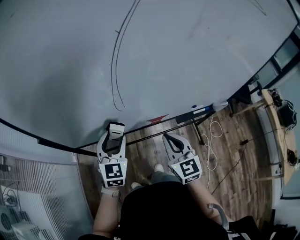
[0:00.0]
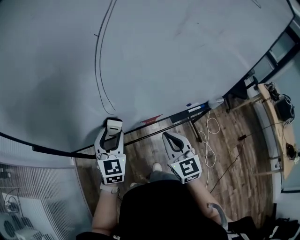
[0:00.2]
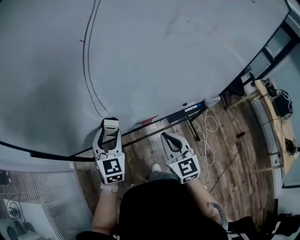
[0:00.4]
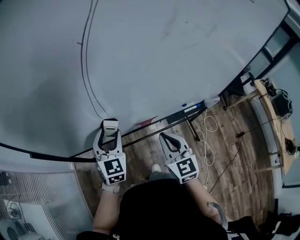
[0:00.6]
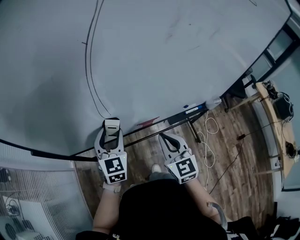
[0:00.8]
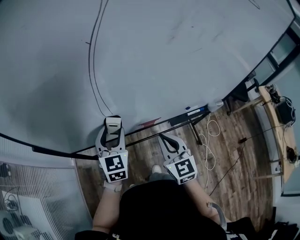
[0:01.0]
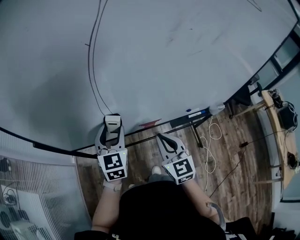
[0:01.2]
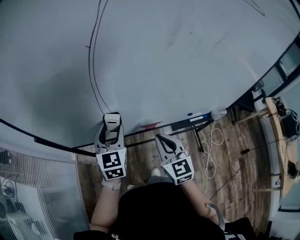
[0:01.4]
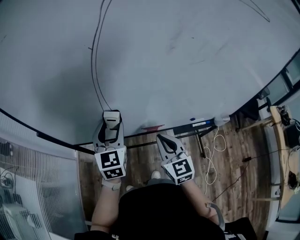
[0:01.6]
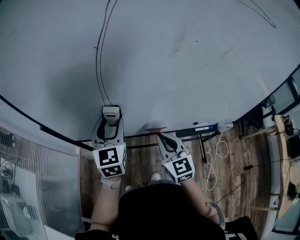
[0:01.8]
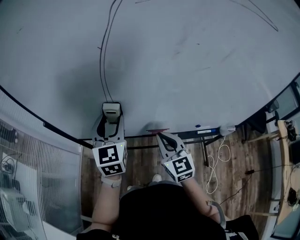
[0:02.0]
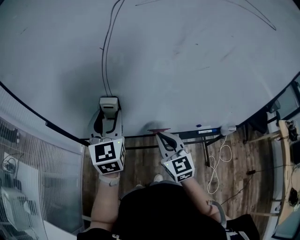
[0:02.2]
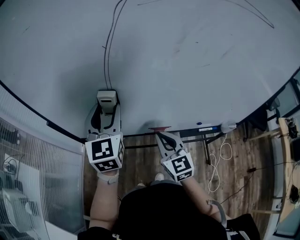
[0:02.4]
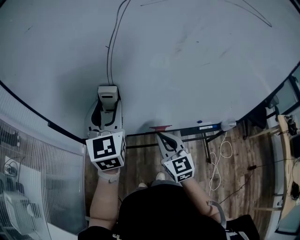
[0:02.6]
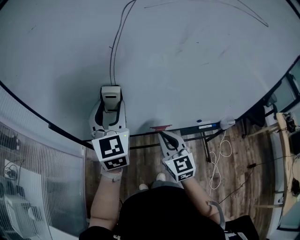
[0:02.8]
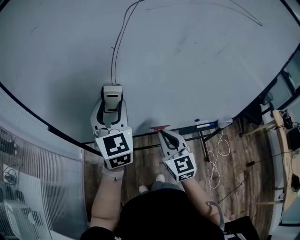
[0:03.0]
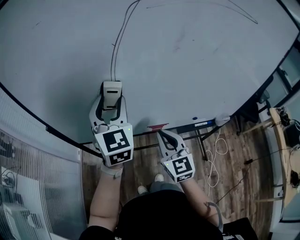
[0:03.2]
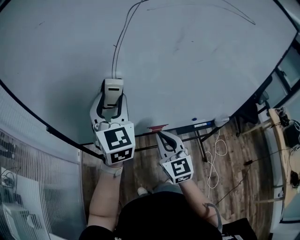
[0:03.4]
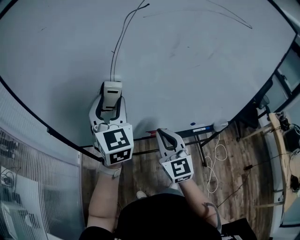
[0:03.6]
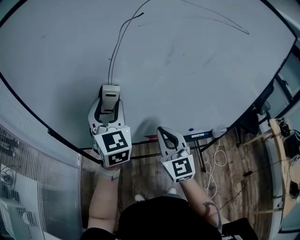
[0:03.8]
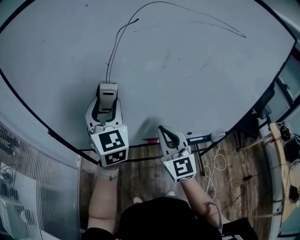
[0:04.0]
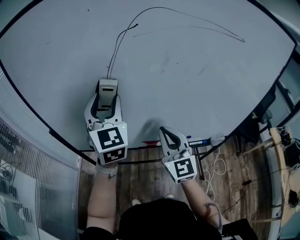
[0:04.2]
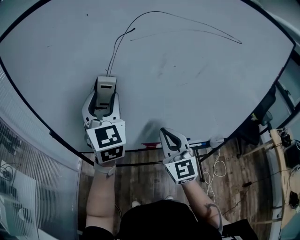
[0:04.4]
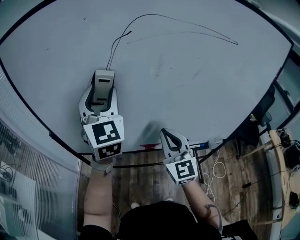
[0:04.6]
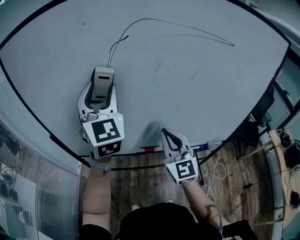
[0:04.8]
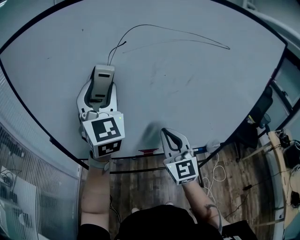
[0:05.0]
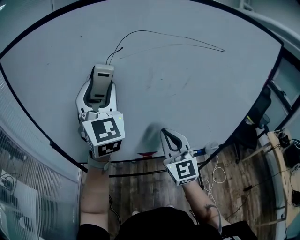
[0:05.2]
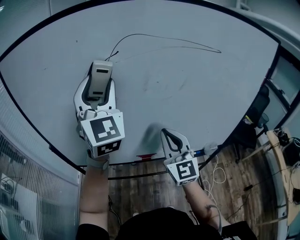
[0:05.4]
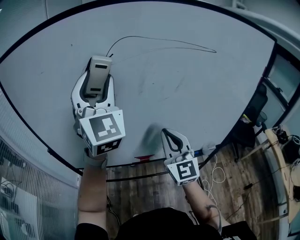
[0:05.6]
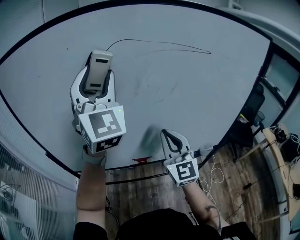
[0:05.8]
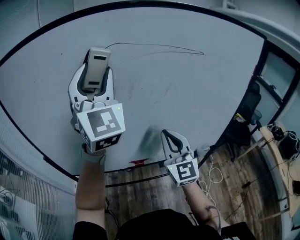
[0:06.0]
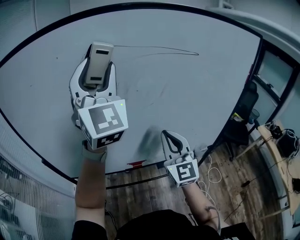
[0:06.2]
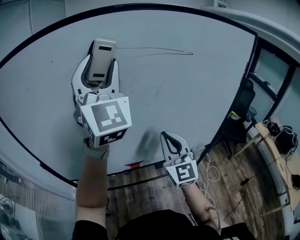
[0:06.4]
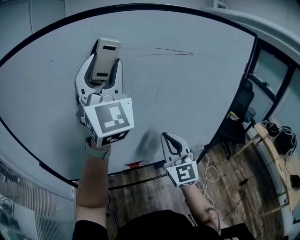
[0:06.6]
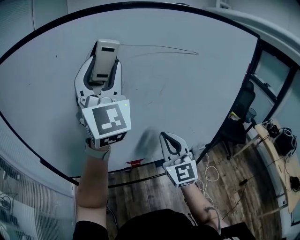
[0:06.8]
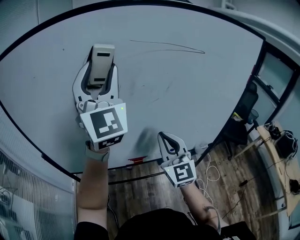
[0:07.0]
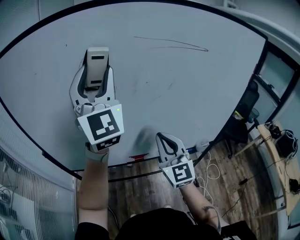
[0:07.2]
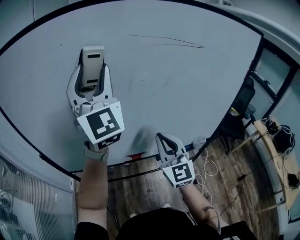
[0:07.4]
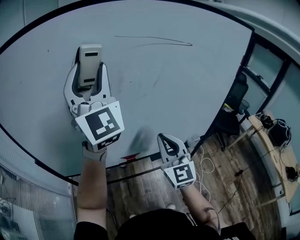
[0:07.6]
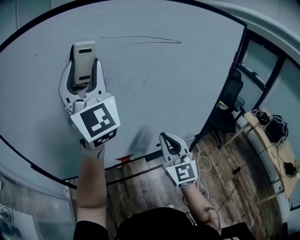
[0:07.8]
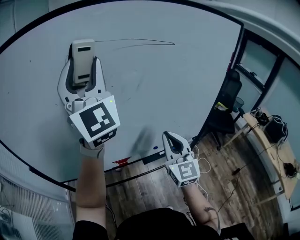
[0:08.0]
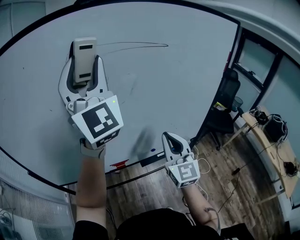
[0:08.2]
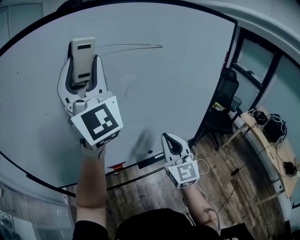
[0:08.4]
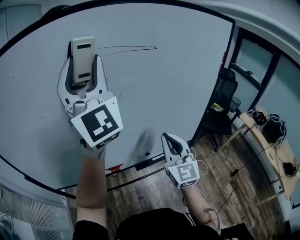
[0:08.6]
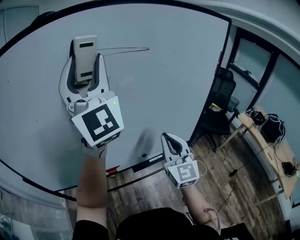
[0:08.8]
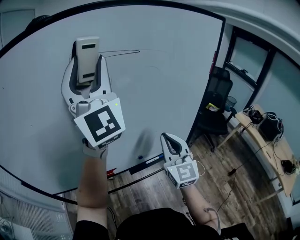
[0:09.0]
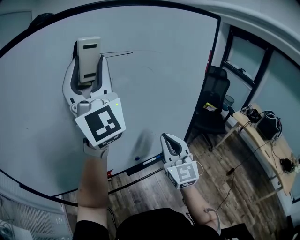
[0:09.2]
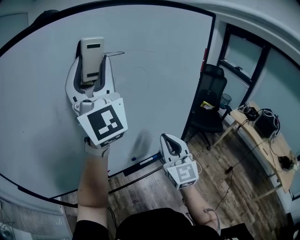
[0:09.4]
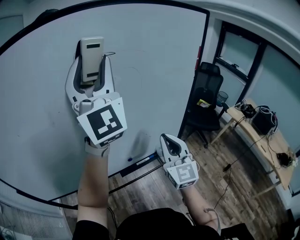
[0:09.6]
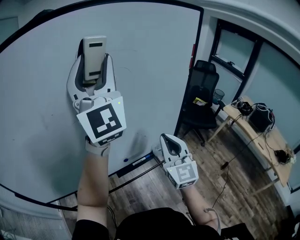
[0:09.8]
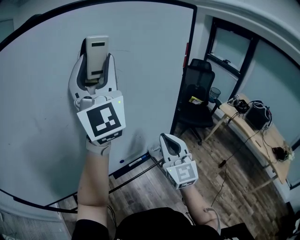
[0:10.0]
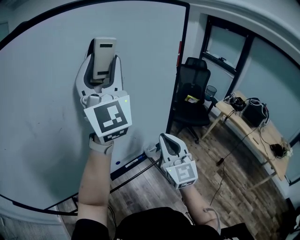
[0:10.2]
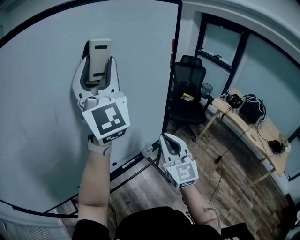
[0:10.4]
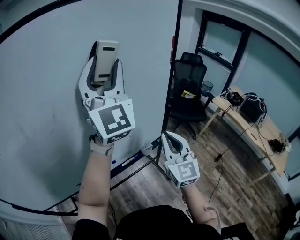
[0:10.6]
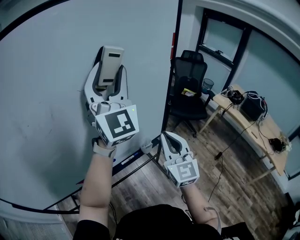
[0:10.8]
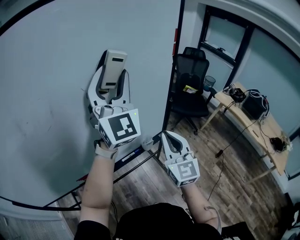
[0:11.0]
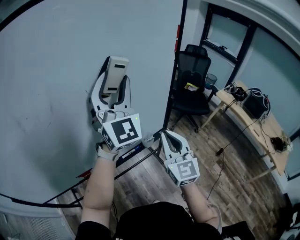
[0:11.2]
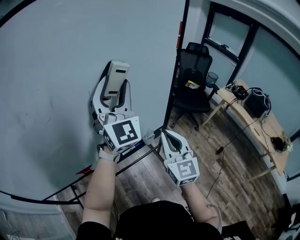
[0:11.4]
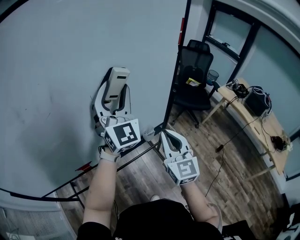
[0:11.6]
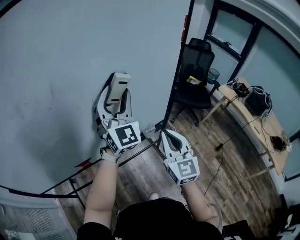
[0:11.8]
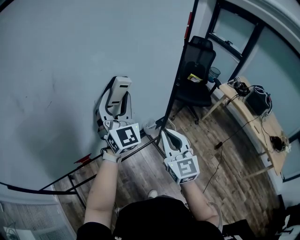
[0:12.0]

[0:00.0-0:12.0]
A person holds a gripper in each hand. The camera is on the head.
0:00.0 to 0:01.6: The right gripper changes place by roughly 5 cm. The left gripper shifts some 5 cm upward.
0:01.6 to 0:03.0: The right gripper ends up about 5 cm from where it was; the left gripper goes about 15 cm upward.
0:03.0 to 0:04.4: The two grippers go about 10 cm upward.
0:04.4 to 0:06.0: The right gripper travels to the right and upward by approximately 10 cm; the left gripper is displaced upward and to the right by some 20 cm, and changes its angle by some 20 degrees.
0:06.0 to 0:07.6: The left gripper moves about 5 cm to the right and comes back.
0:07.6 to 0:09.0: The grippers both shift to the right by some 20 cm.
0:09.0 to 0:10.4: The grippers both shift to the right by roughly 15 cm.
0:10.4 to 0:12.0: The right gripper heads downward, covering approximately 10 cm; the left gripper moves downward, some 25 cm, and turns by about 20 degrees.

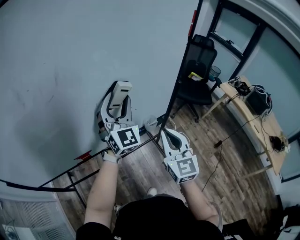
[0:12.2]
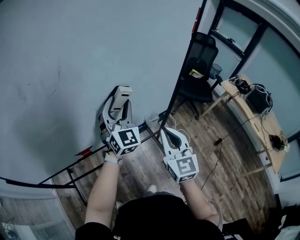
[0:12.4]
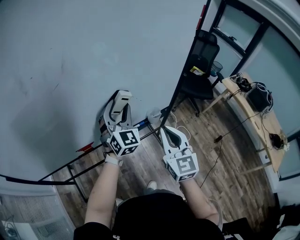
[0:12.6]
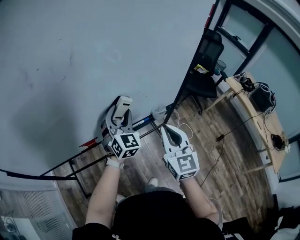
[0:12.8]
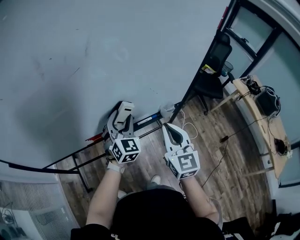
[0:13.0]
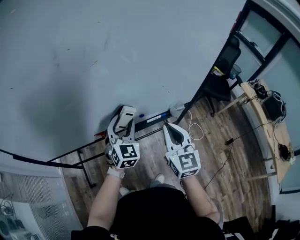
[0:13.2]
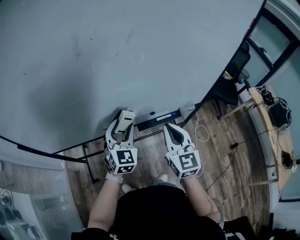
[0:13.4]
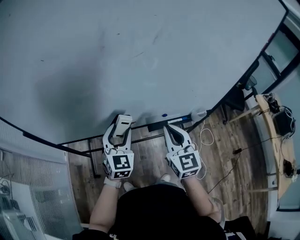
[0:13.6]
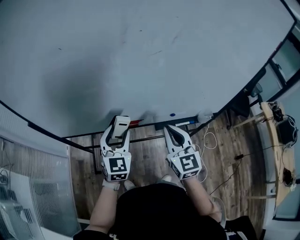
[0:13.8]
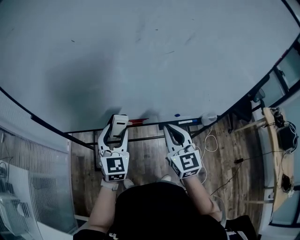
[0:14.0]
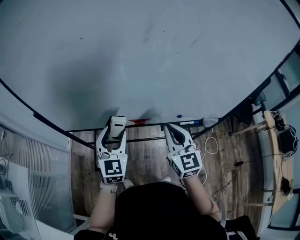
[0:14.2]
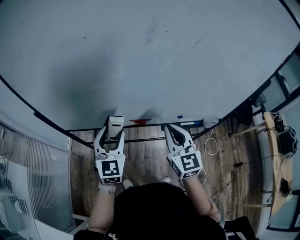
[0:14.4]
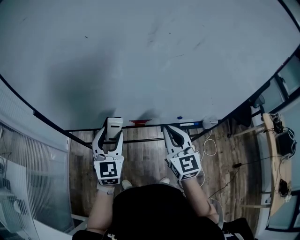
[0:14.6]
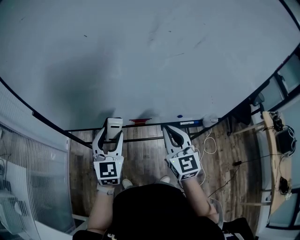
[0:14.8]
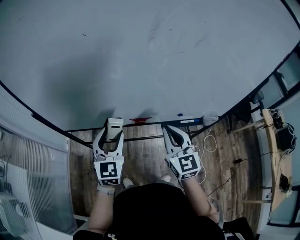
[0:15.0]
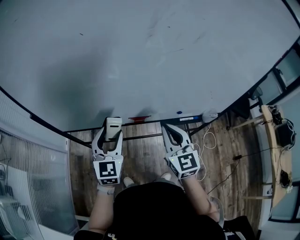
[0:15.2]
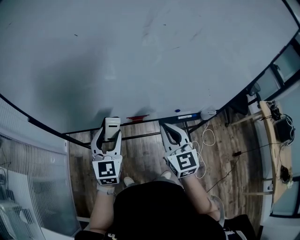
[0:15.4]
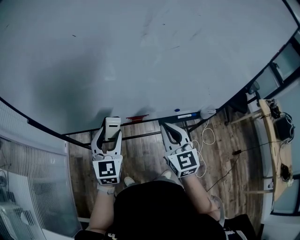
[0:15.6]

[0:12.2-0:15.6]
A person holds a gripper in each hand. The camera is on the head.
0:12.2 to 0:13.8: The right gripper shifts roughly 25 cm to the left, and changes its angle by approximately 20 degrees. The left gripper moves to the left, backward and downward, about 40 cm, and rotates about 30 degrees.
0:13.8 to 0:15.6: Both grippers travel together to the left, some 5 cm.

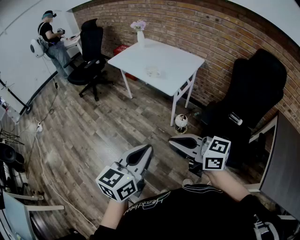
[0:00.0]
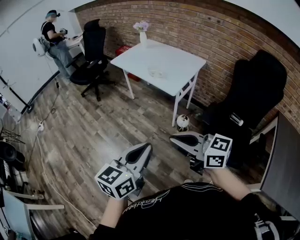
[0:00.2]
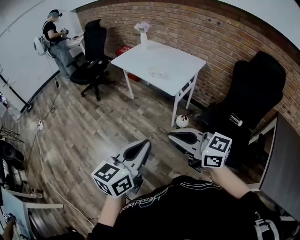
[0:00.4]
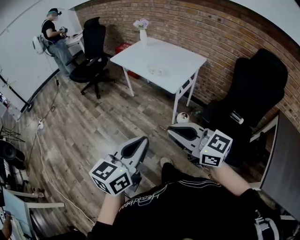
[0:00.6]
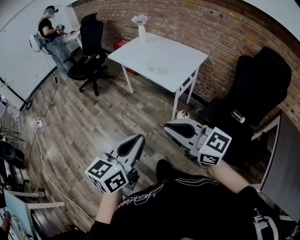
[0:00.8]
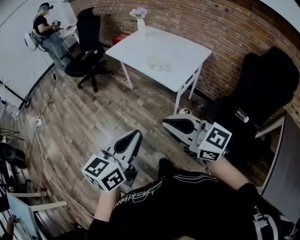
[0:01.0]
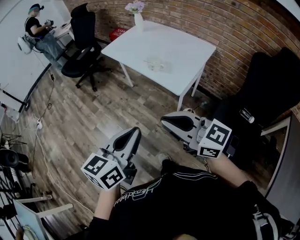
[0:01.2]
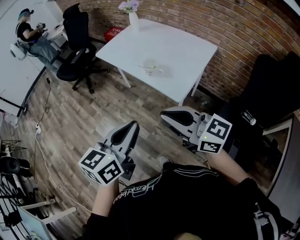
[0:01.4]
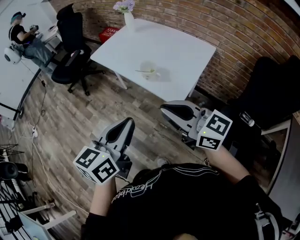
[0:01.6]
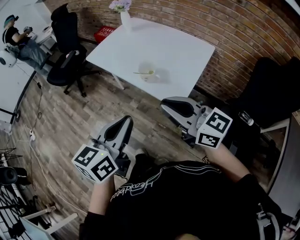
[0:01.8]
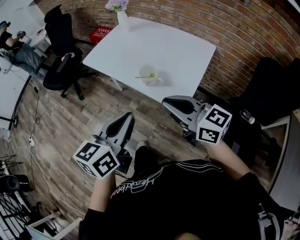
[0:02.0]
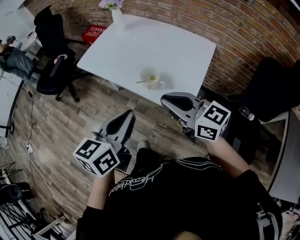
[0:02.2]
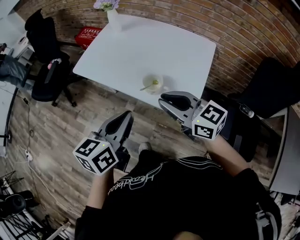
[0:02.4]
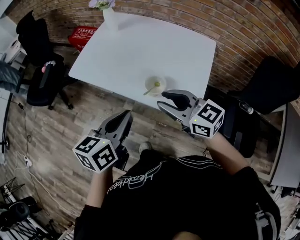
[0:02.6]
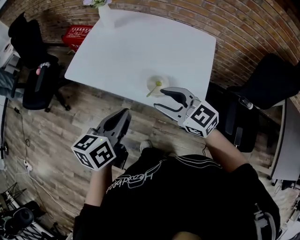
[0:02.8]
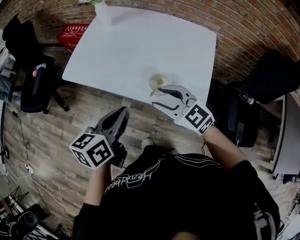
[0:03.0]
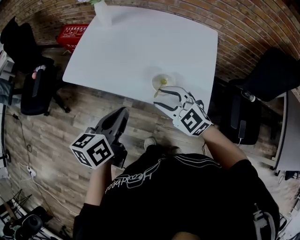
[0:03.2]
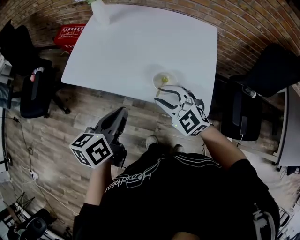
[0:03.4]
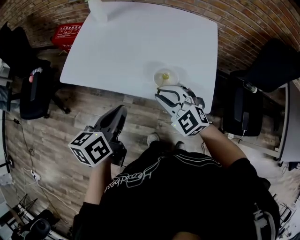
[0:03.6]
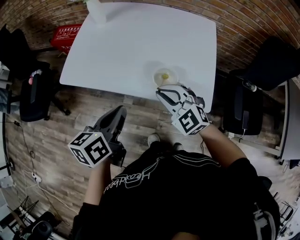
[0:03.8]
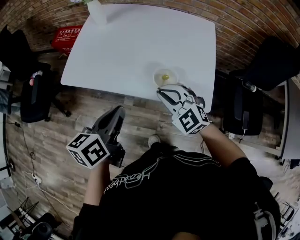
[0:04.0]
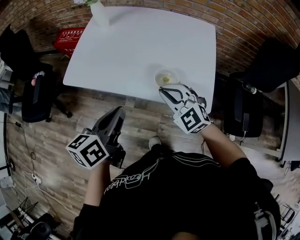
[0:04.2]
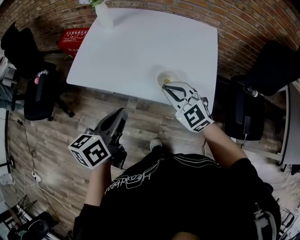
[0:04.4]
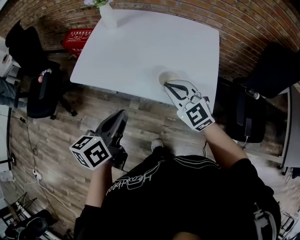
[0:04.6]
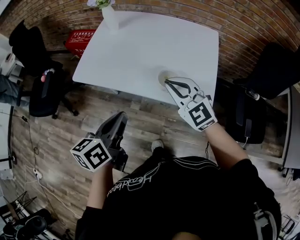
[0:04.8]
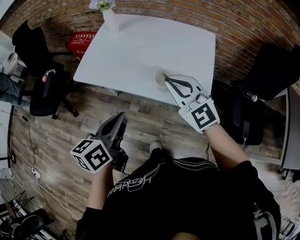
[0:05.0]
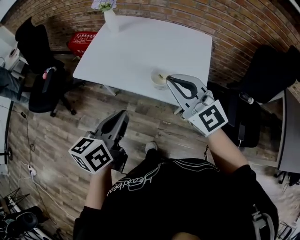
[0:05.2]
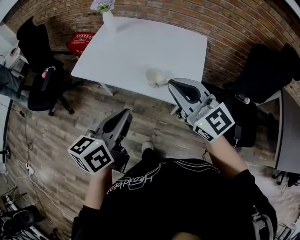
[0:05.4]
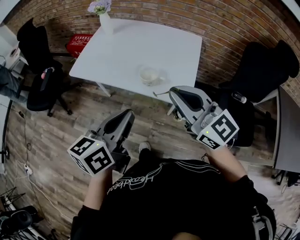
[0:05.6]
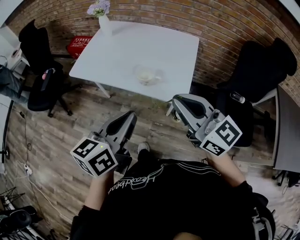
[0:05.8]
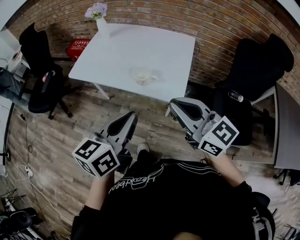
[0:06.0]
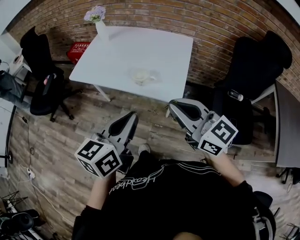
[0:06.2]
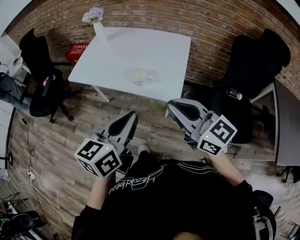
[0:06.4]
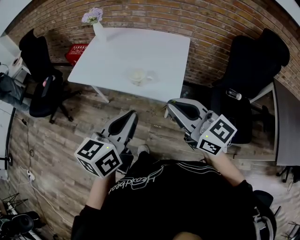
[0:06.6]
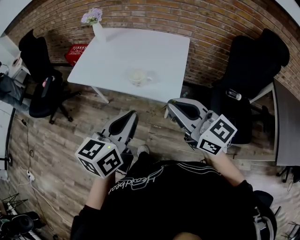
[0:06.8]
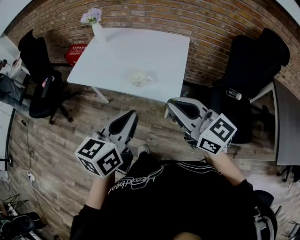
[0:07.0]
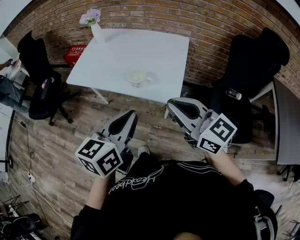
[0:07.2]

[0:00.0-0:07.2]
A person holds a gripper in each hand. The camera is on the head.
0:00.0 to 0:01.4: The two grippers go about 30 cm forward.
0:01.4 to 0:02.8: The grippers both shift forward by some 35 cm. The left gripper rotates approximately 20 degrees. The right gripper rotates roughly 30 degrees, and opens.
0:02.8 to 0:04.4: The left gripper shifts approximately 5 cm to the left. Meanwhile the right gripper is displaced downward by roughly 5 cm, rotates approximately 30 degrees, and closes its fingers.
0:04.4 to 0:05.8: The right gripper goes some 30 cm backward, upward and to the right, and rotates roughly 40 degrees. The left gripper is displaced backward, to the right and upward by some 25 cm.
0:05.8 to 0:07.2: The grippers move only a little.

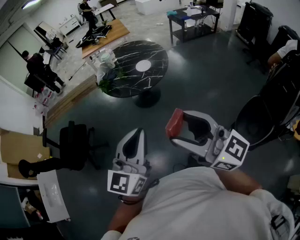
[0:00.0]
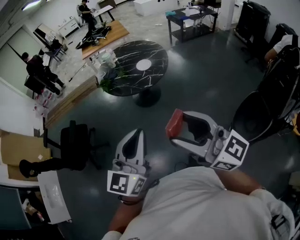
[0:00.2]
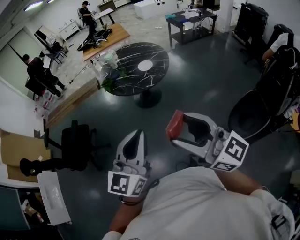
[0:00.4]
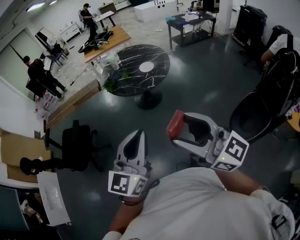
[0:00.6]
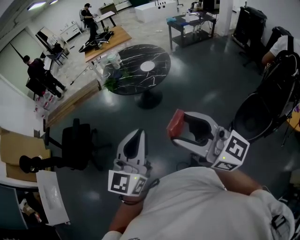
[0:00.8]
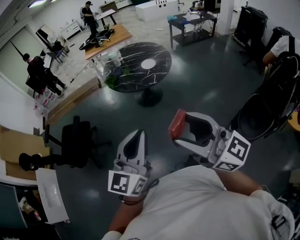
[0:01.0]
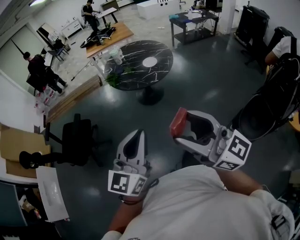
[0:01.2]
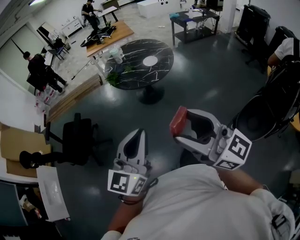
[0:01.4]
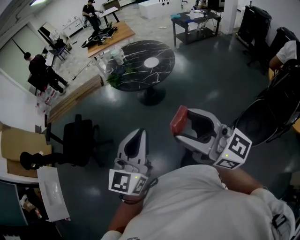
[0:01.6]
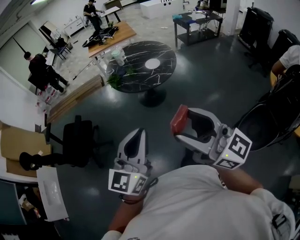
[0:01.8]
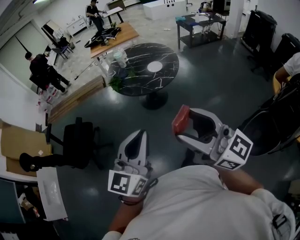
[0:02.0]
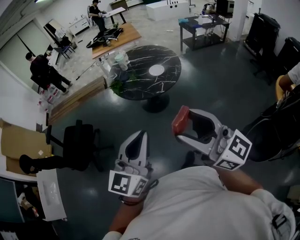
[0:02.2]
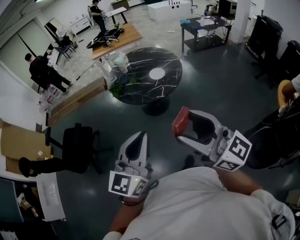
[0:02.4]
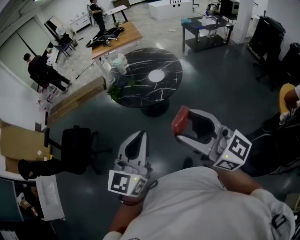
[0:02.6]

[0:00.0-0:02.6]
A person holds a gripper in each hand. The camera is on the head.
0:00.0 to 0:01.2: The grippers both shift to the left and backward by approximately 15 cm.
0:01.2 to 0:02.6: The grippers both shift forward and to the right by approximately 20 cm.
